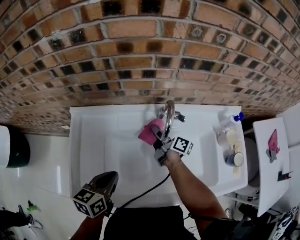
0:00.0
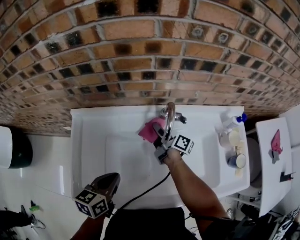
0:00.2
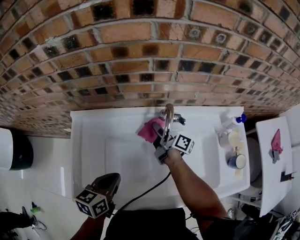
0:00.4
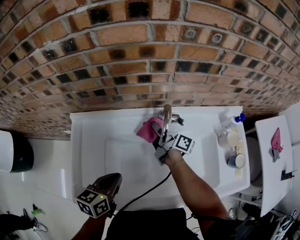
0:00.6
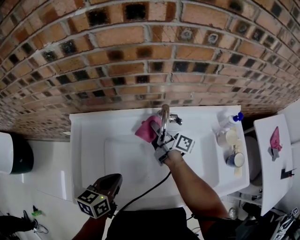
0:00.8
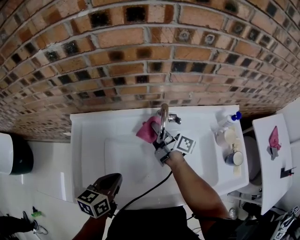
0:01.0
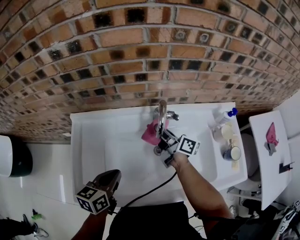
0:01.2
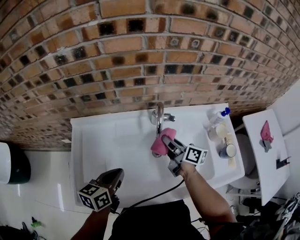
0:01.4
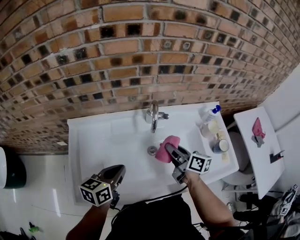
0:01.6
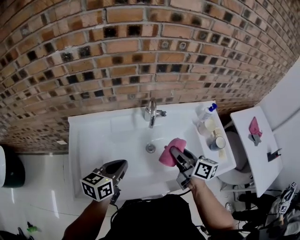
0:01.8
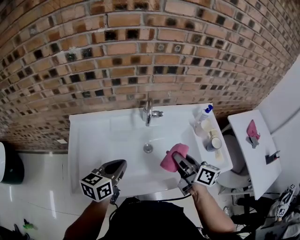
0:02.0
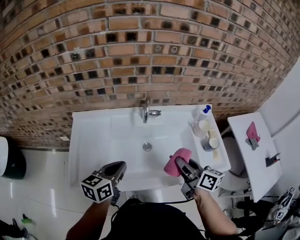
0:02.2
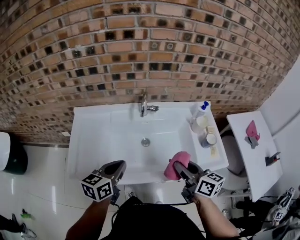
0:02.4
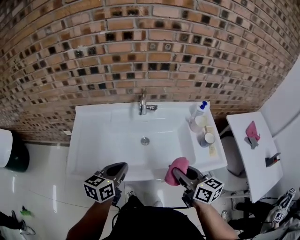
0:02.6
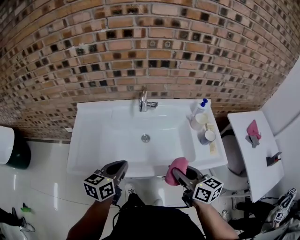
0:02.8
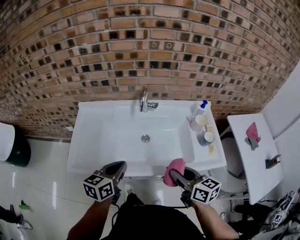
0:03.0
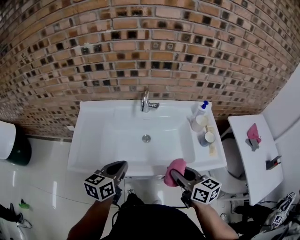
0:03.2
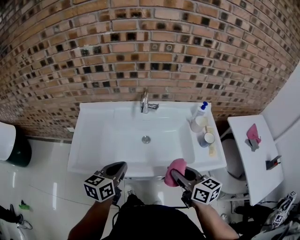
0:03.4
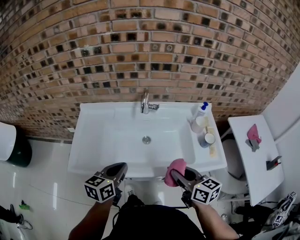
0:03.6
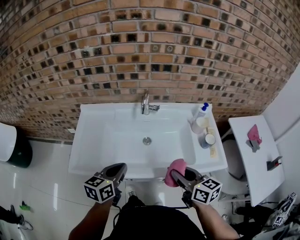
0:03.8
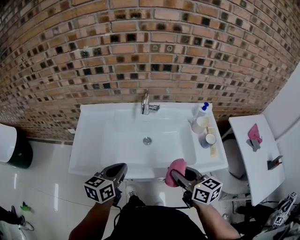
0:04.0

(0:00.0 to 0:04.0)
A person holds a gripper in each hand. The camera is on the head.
0:00.0 - 0:01.4: The right gripper moves to the right, backward and upward, approximately 10 cm.
0:01.4 - 0:02.6: The right gripper is displaced backward and upward by about 30 cm, and changes its angle by approximately 30 degrees, while the left gripper shifts about 15 cm backward, to the right and upward.
0:02.6 - 0:04.0: The grippers stay close to where they were, moving slightly.

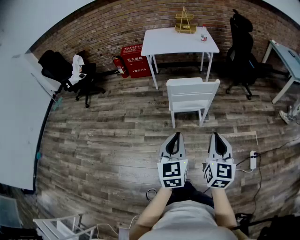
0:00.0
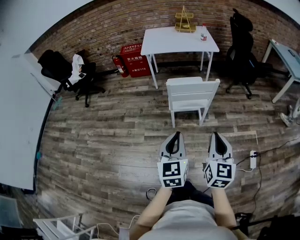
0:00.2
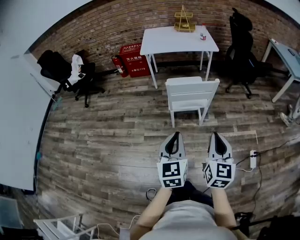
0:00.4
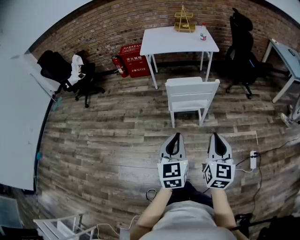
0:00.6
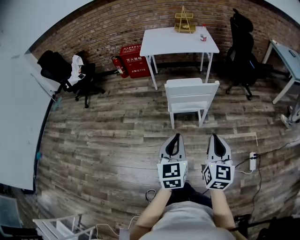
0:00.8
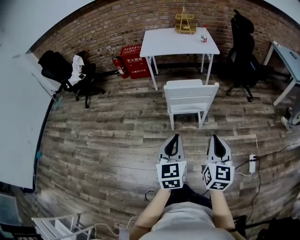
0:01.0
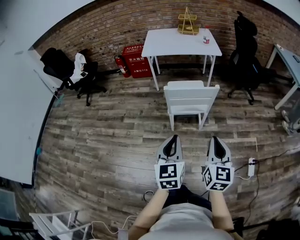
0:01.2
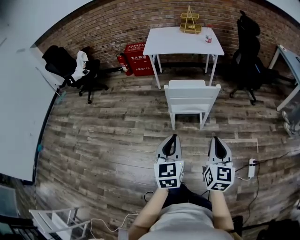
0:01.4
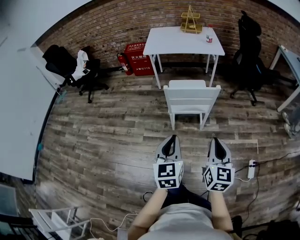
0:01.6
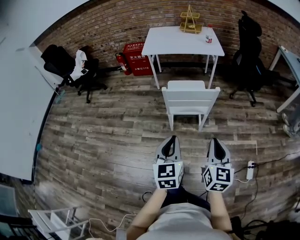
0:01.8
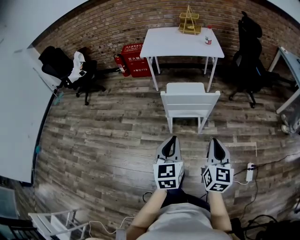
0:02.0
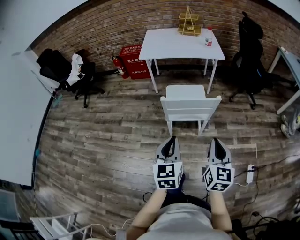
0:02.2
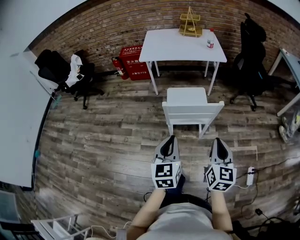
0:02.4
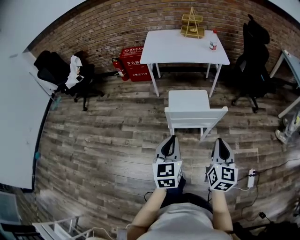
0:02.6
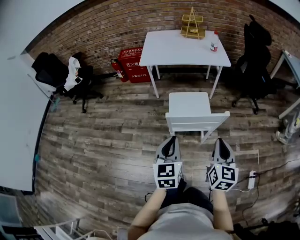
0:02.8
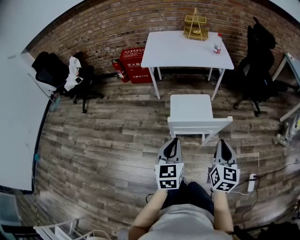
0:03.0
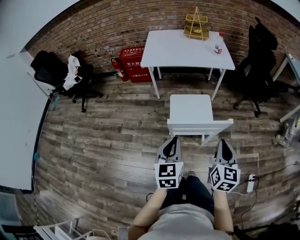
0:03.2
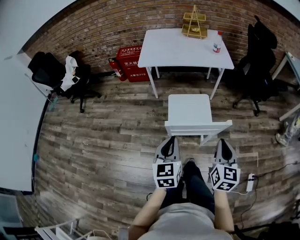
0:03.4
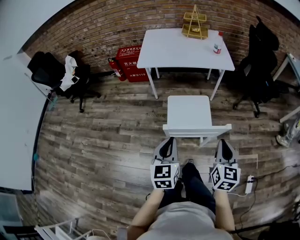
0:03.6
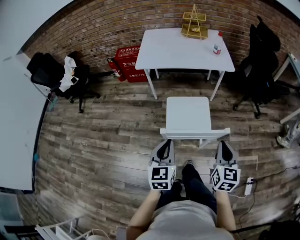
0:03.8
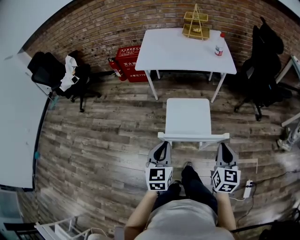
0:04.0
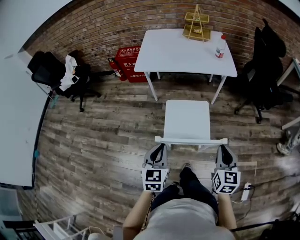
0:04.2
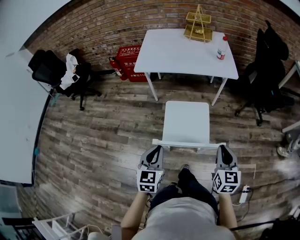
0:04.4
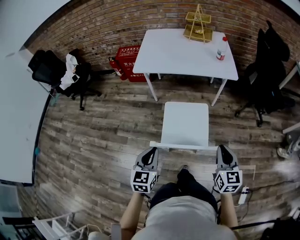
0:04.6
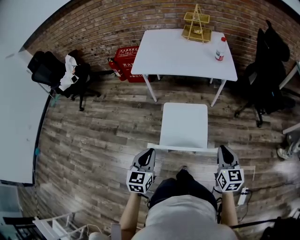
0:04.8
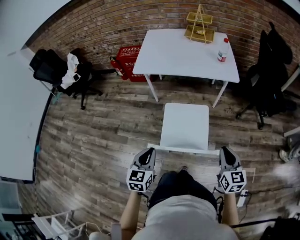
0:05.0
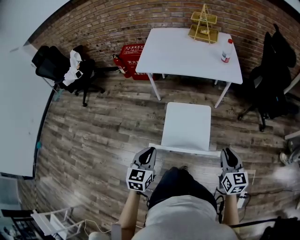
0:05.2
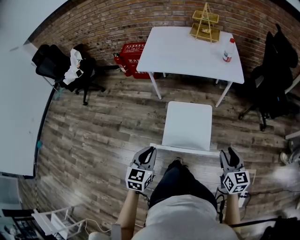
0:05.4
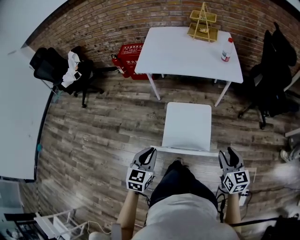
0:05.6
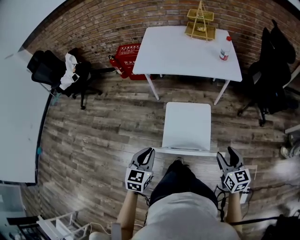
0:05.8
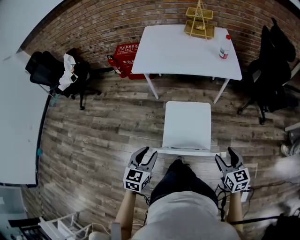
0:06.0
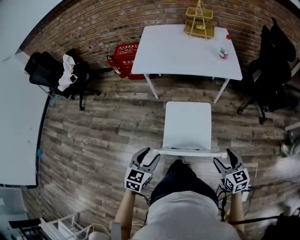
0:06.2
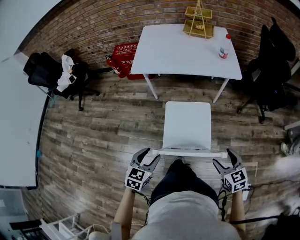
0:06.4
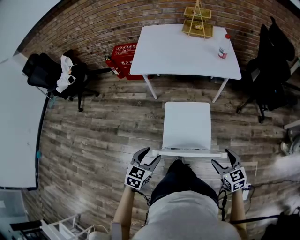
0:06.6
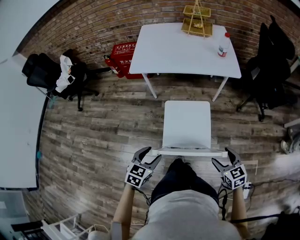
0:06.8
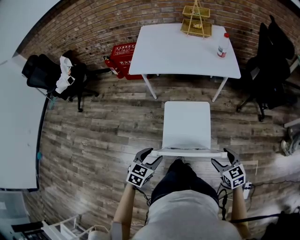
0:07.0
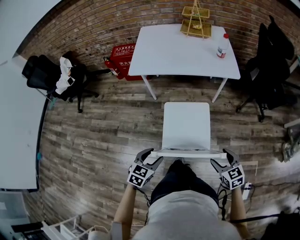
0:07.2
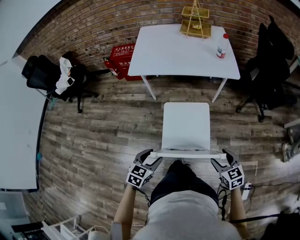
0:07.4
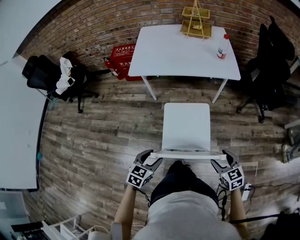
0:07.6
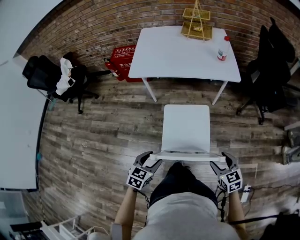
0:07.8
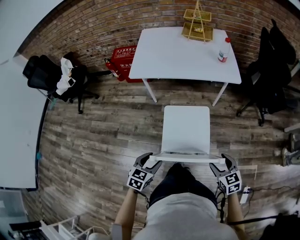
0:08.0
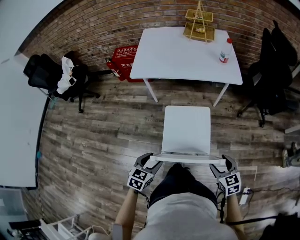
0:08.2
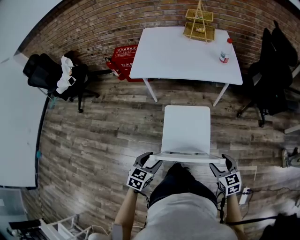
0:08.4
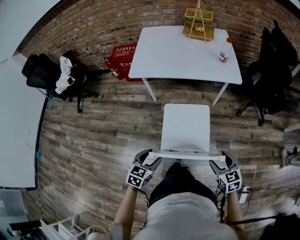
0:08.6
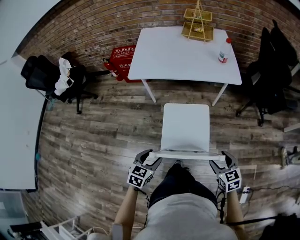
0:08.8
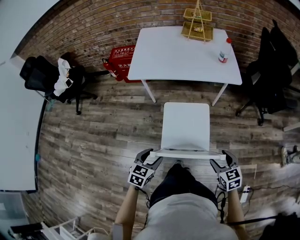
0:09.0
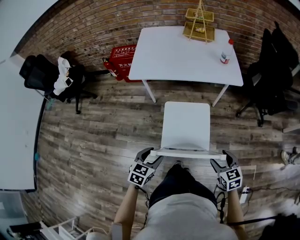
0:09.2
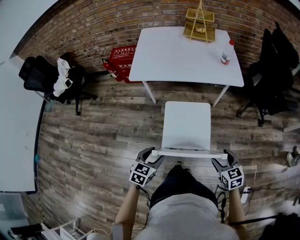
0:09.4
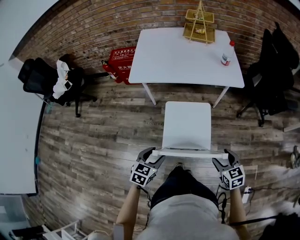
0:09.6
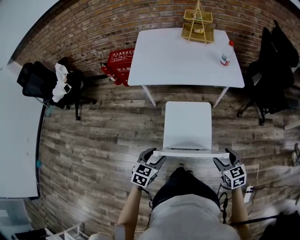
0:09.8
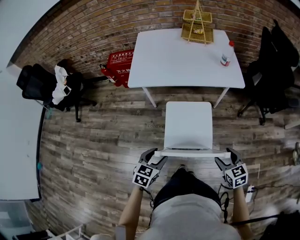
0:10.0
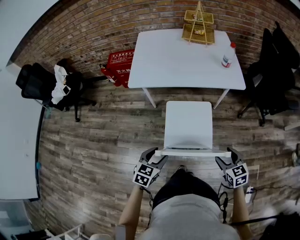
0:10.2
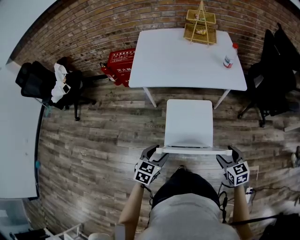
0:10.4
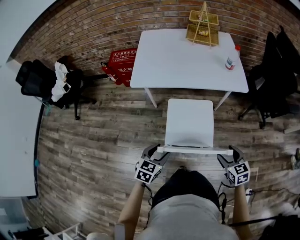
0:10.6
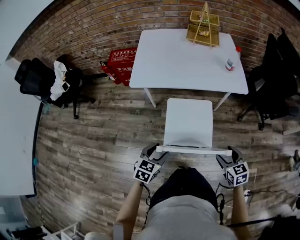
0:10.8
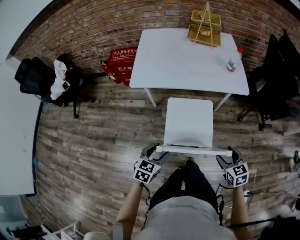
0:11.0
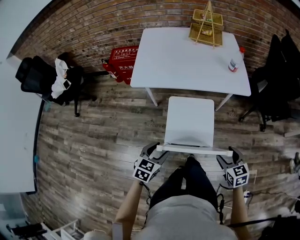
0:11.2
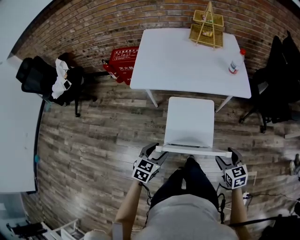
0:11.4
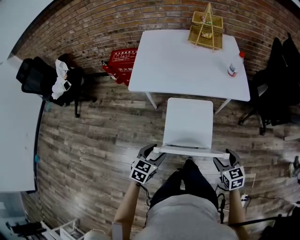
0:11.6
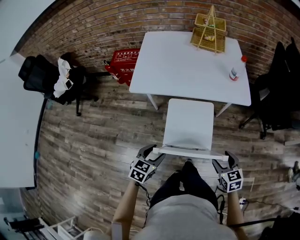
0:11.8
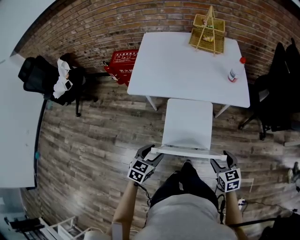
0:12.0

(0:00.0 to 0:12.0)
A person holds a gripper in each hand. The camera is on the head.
0:00.0 - 0:01.6: The left gripper shifts by some 5 cm, while the right gripper shifts about 5 cm forward and to the right.
0:01.6 - 0:03.0: Both grippers move forward, roughly 20 cm.
0:03.0 - 0:04.4: The right gripper goes roughly 15 cm forward and to the right; the left gripper shifts roughly 10 cm forward and downward.
0:04.4 - 0:06.0: The right gripper heads downward, covering roughly 5 cm, and opens up. Meanwhile the left gripper ends up some 5 cm from where it was, and opens.
0:06.0 - 0:07.6: The left gripper is displaced downward by approximately 5 cm, and opens its fingers.
0:07.6 - 0:09.0: The grippers stay close to where they were, moving slightly.
0:09.0 - 0:10.4: Both grippers travel together forward, roughly 10 cm.
0:10.4 - 0:12.0: The grippers both shift forward by roughly 10 cm.

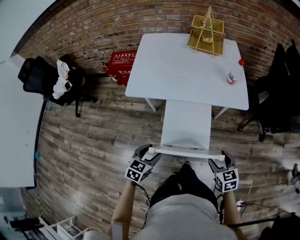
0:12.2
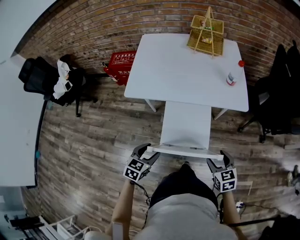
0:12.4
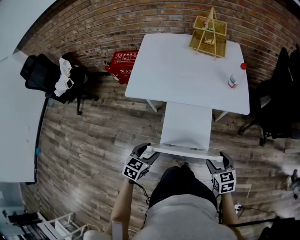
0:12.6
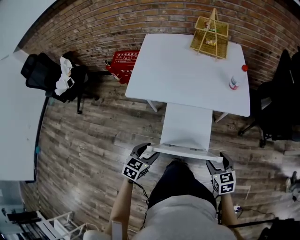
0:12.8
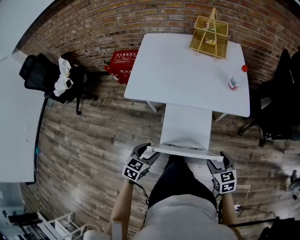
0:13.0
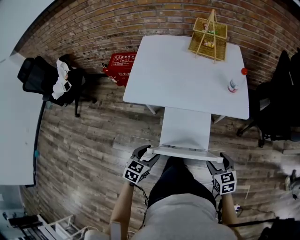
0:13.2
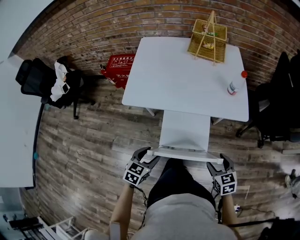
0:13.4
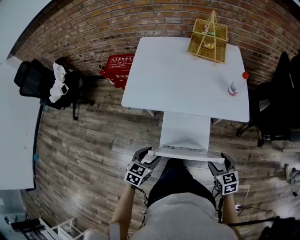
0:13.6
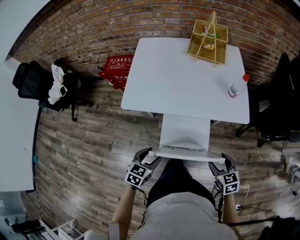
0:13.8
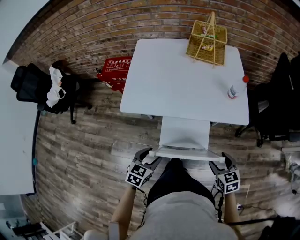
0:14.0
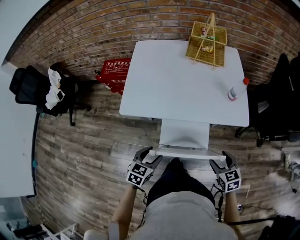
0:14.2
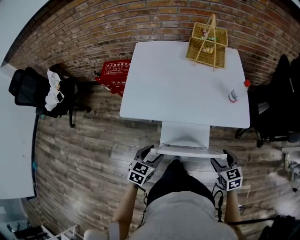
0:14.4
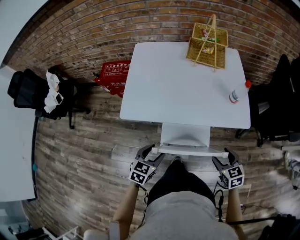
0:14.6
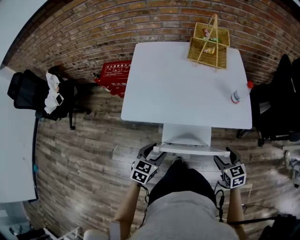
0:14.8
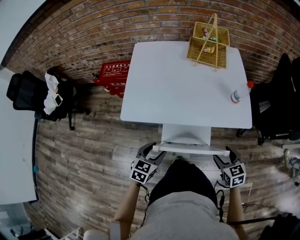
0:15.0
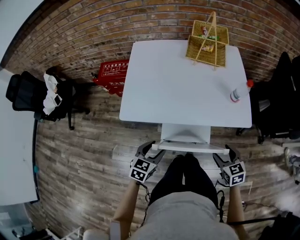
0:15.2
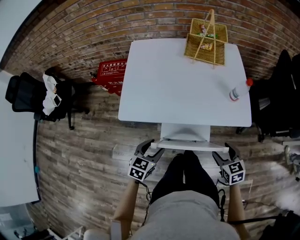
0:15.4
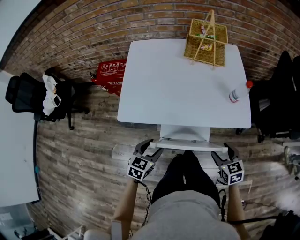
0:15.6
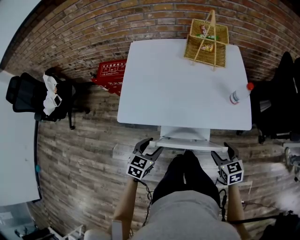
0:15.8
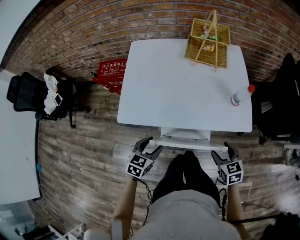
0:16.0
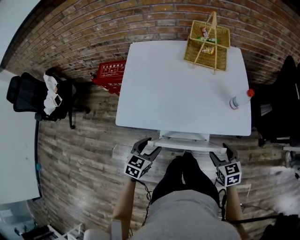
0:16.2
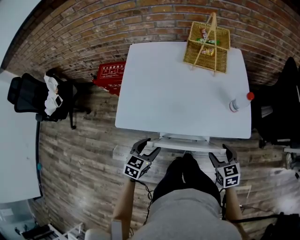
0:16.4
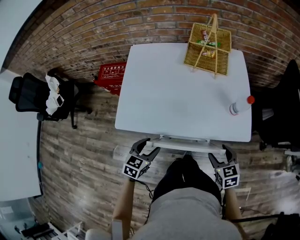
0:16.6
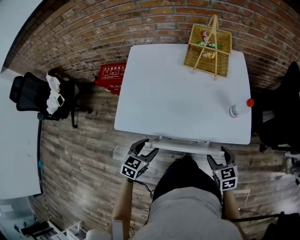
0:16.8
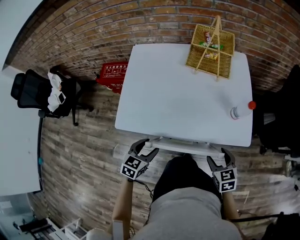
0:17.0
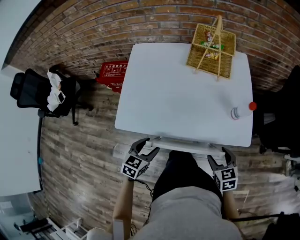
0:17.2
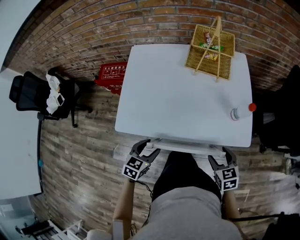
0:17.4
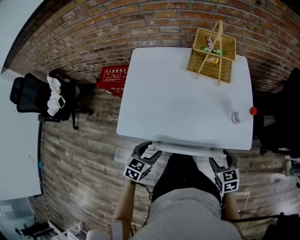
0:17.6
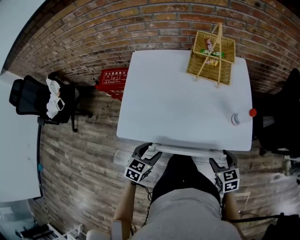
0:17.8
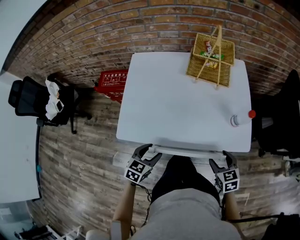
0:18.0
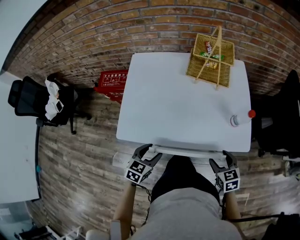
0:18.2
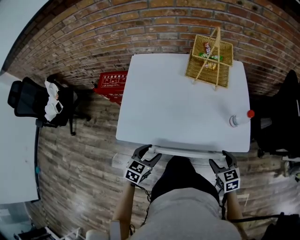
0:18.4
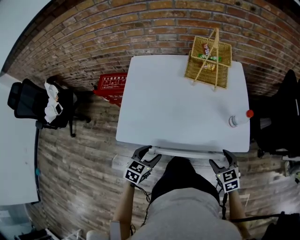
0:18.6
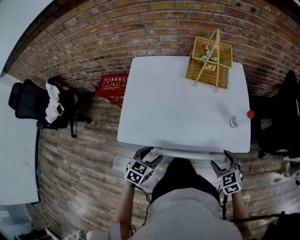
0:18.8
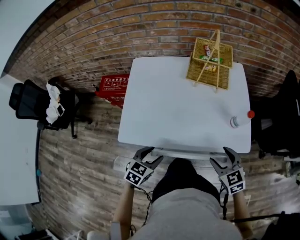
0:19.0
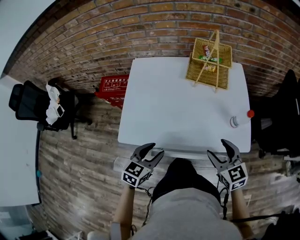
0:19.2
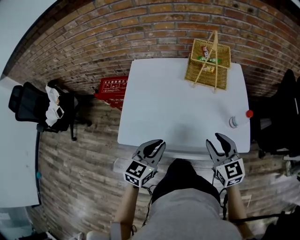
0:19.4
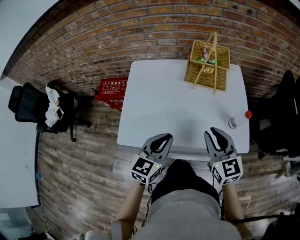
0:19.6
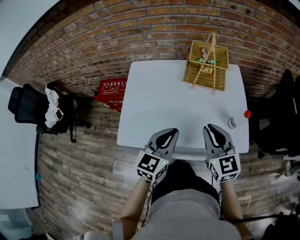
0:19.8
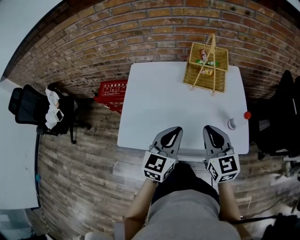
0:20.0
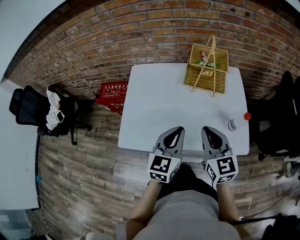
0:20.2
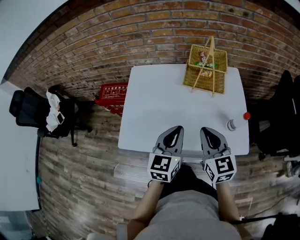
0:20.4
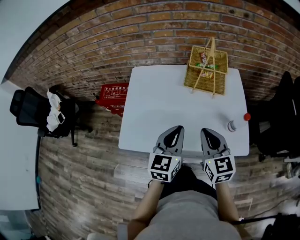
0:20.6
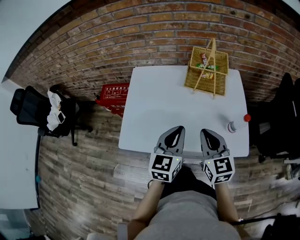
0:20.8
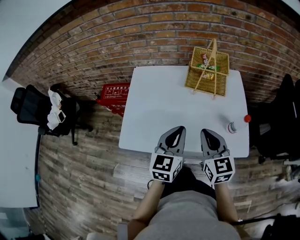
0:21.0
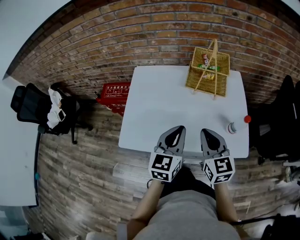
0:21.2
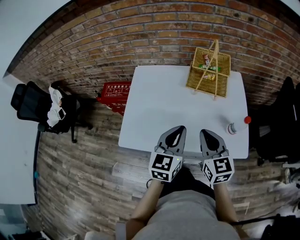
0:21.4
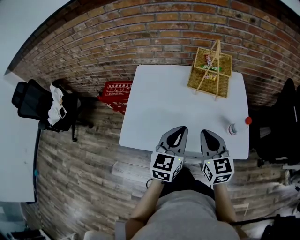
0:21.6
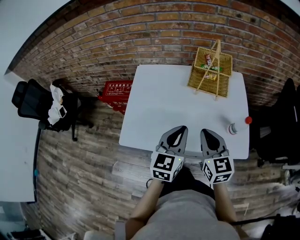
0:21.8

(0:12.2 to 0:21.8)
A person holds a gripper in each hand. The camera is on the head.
0:12.2 - 0:13.8: Both grippers travel together forward, approximately 10 cm.
0:13.8 - 0:15.4: The two grippers go some 10 cm forward.
0:15.4 - 0:17.0: The grippers both shift forward by roughly 10 cm.
0:17.0 - 0:18.6: The grippers stay close to where they were, moving slightly.
0:18.6 - 0:20.2: The right gripper shifts approximately 20 cm upward, forward and to the left, tilts its fingers roughly 30 degrees upward, and closes; the left gripper shifts some 25 cm upward, forward and to the right, turns by about 30 degrees, and closes its fingers.
0:20.2 - 0:21.8: Both grippers stay put.
